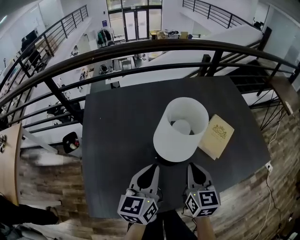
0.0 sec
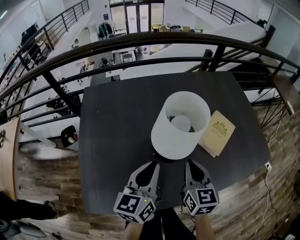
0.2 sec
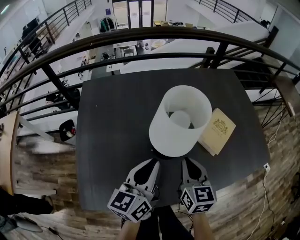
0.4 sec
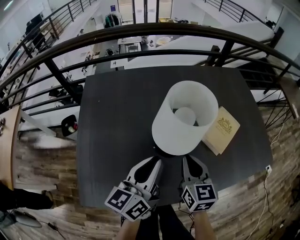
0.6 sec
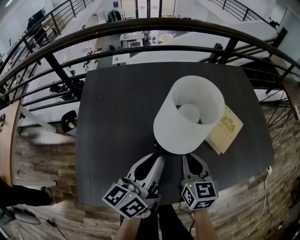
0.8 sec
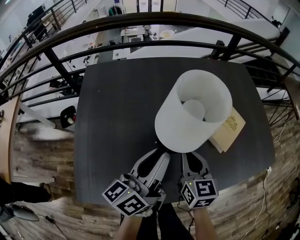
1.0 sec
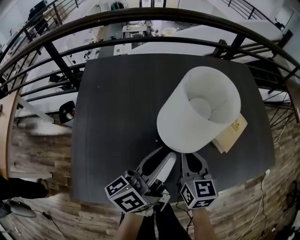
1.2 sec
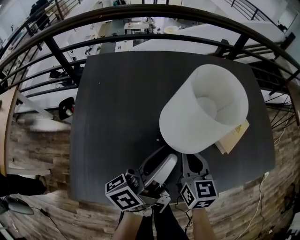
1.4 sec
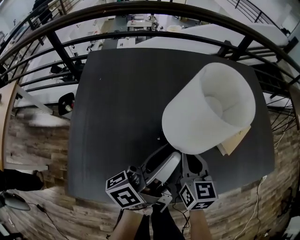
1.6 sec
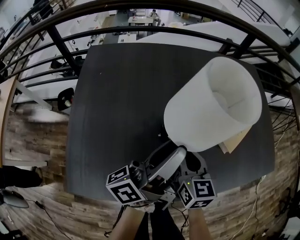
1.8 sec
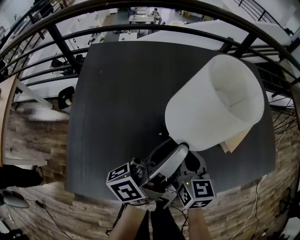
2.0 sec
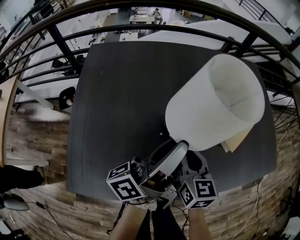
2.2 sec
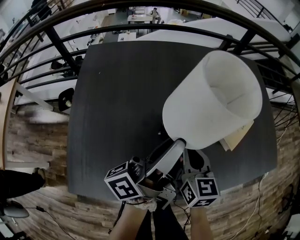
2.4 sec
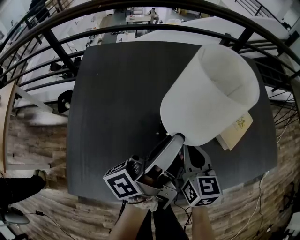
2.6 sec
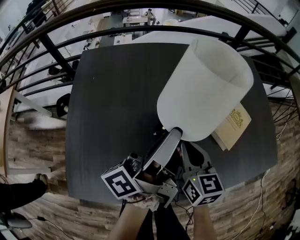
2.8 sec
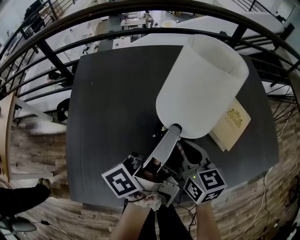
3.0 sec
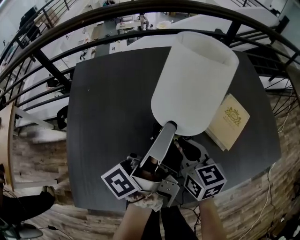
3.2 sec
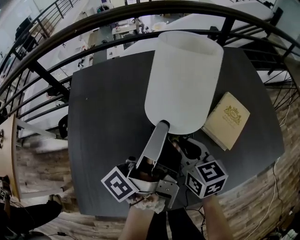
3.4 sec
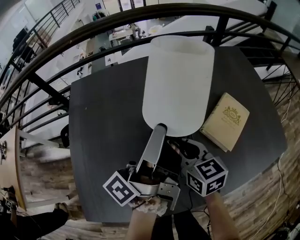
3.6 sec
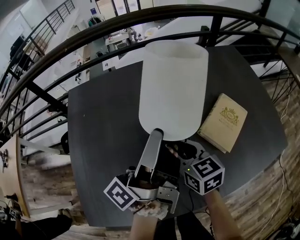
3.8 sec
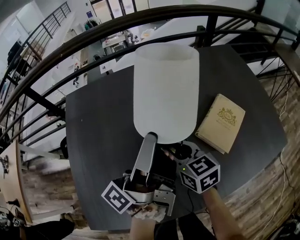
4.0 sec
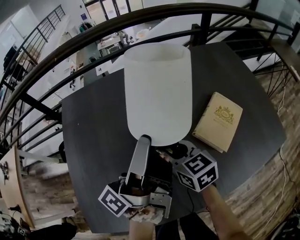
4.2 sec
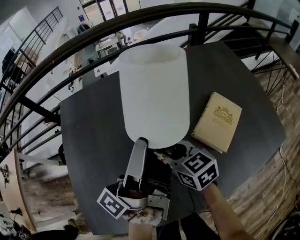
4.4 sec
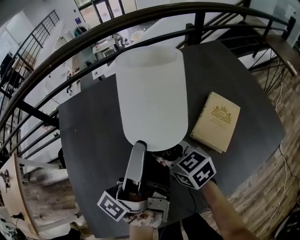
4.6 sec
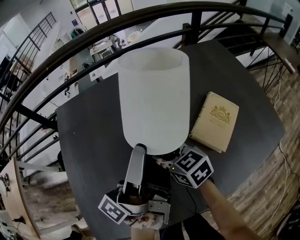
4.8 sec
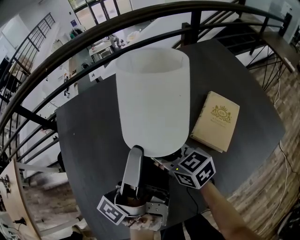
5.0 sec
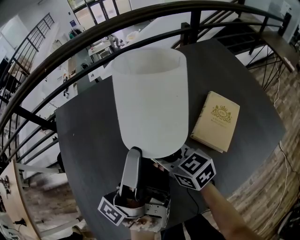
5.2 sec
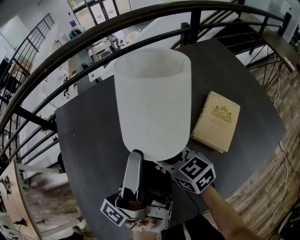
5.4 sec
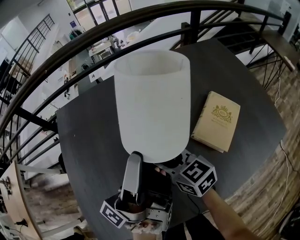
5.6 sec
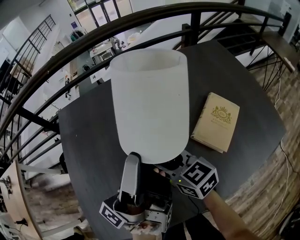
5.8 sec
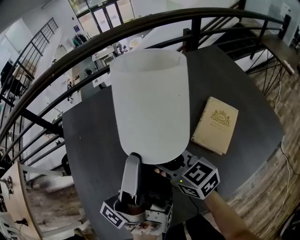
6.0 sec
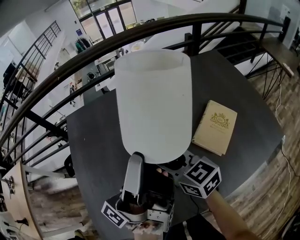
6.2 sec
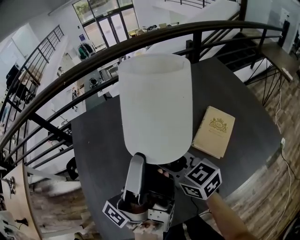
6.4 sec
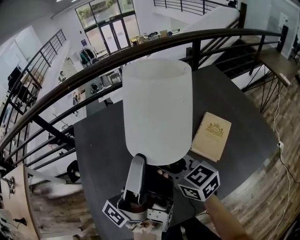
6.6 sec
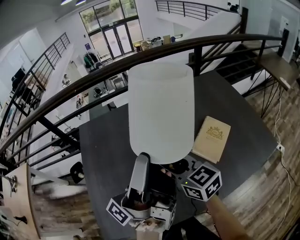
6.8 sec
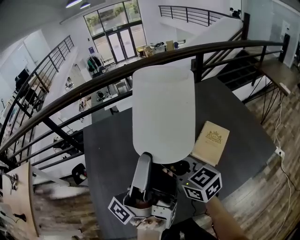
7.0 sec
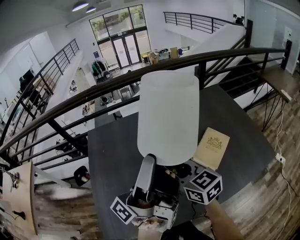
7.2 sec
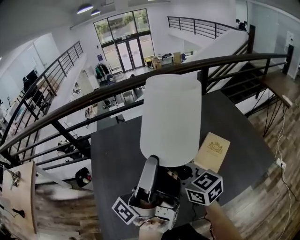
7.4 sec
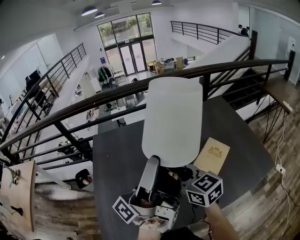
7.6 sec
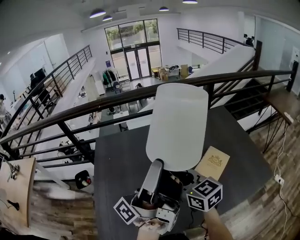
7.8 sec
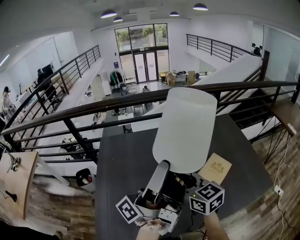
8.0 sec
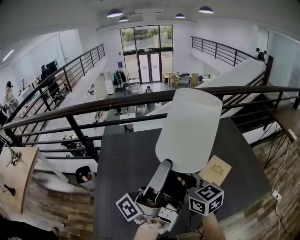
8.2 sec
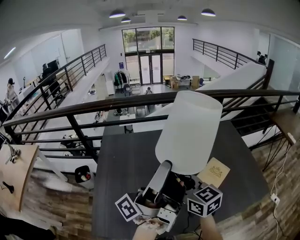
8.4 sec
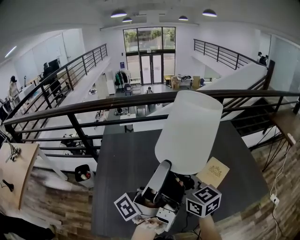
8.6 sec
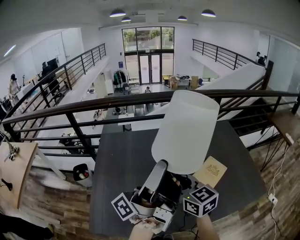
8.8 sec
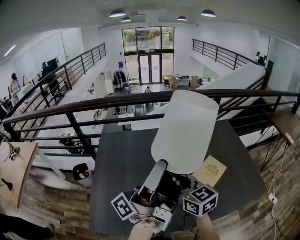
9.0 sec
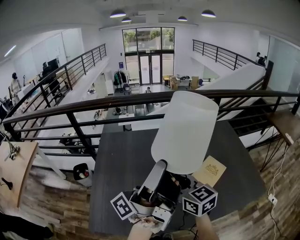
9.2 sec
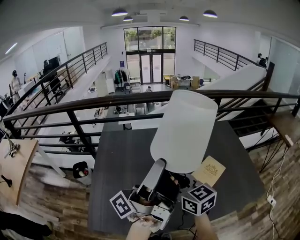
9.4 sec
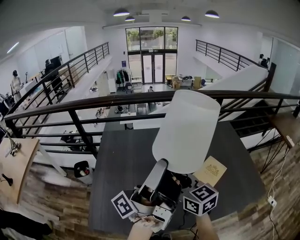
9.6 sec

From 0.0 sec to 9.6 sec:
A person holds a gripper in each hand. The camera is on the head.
From 0.0 sec to 1.6 sec: The left gripper rolls counterclockwise, seen from behind, by some 50 degrees, and opens; the right gripper moves downward, roughly 10 cm.
From 1.6 sec to 3.2 sec: The left gripper travels forward by roughly 5 cm.
From 3.2 sec to 4.8 sec: The right gripper moves forward, approximately 5 cm, and opens its fingers.
From 4.8 sec to 6.4 sec: The grippers both shift upward by approximately 10 cm.
From 6.4 sec to 8.0 sec: The left gripper moves upward and backward, approximately 15 cm. The right gripper goes roughly 15 cm upward.
From 8.0 sec to 9.6 sec: The grippers stay close to where they were, moving slightly.

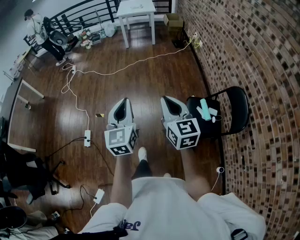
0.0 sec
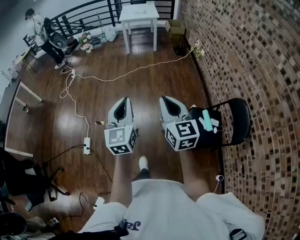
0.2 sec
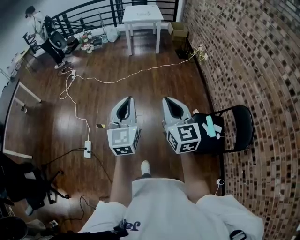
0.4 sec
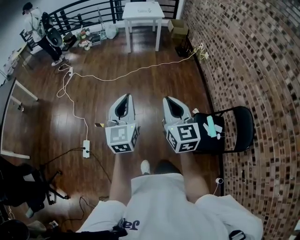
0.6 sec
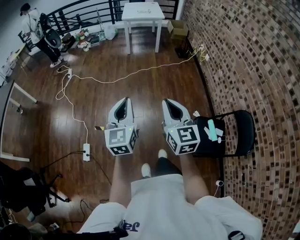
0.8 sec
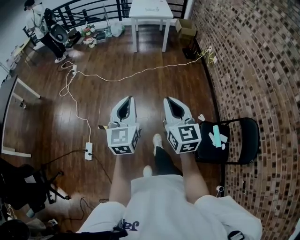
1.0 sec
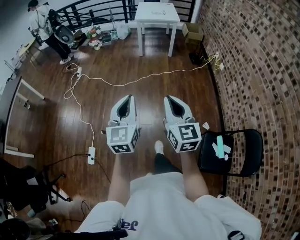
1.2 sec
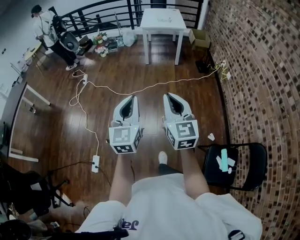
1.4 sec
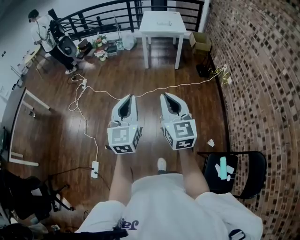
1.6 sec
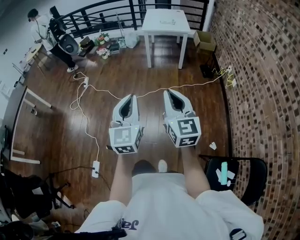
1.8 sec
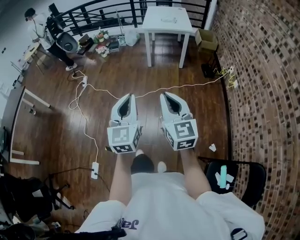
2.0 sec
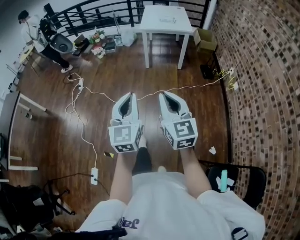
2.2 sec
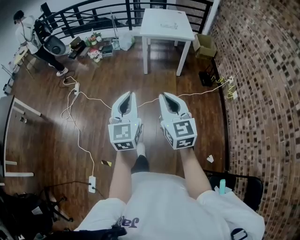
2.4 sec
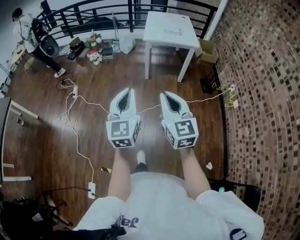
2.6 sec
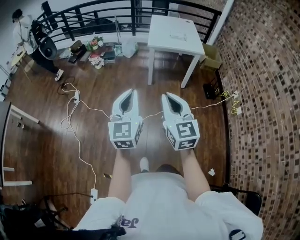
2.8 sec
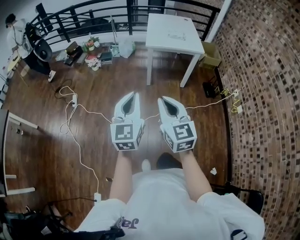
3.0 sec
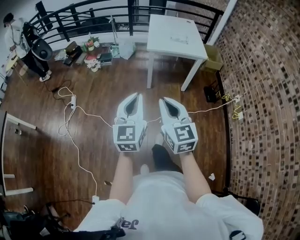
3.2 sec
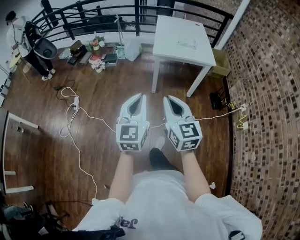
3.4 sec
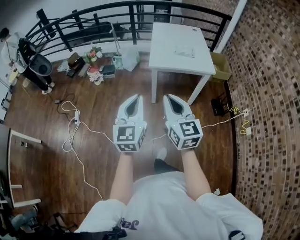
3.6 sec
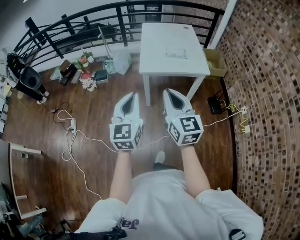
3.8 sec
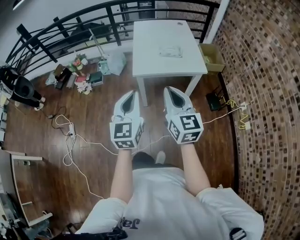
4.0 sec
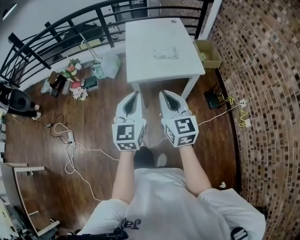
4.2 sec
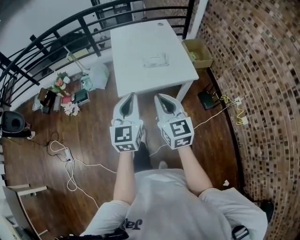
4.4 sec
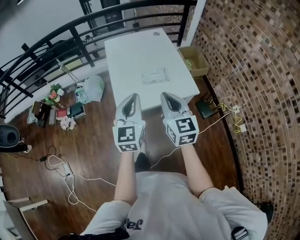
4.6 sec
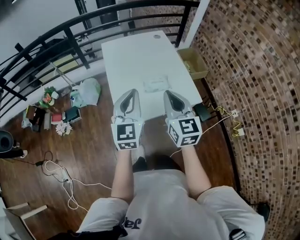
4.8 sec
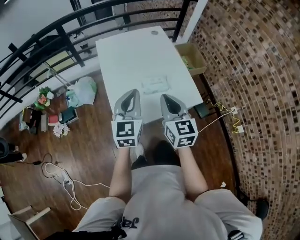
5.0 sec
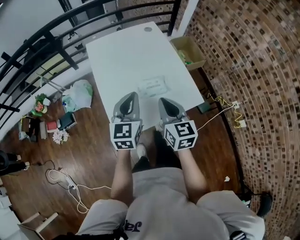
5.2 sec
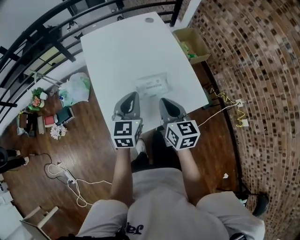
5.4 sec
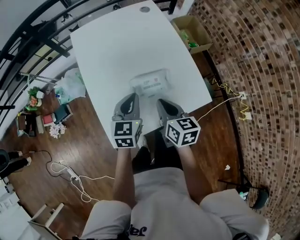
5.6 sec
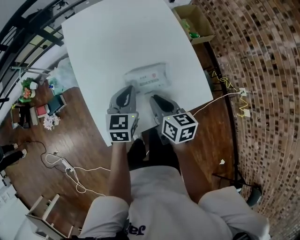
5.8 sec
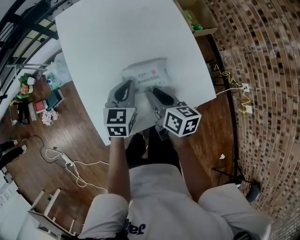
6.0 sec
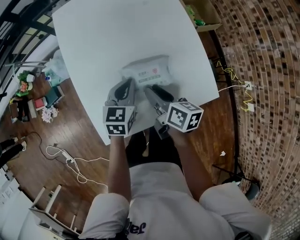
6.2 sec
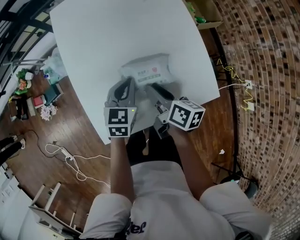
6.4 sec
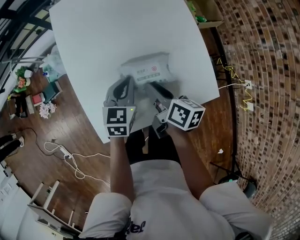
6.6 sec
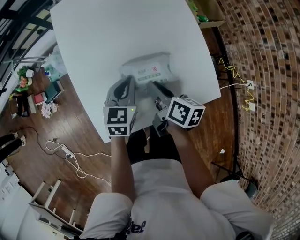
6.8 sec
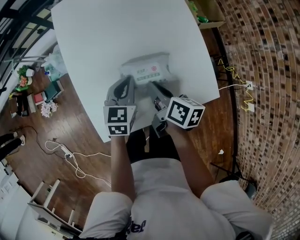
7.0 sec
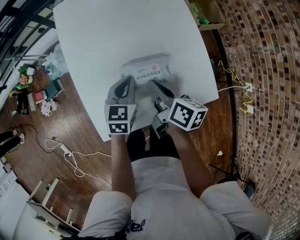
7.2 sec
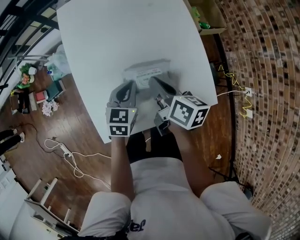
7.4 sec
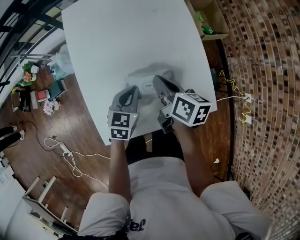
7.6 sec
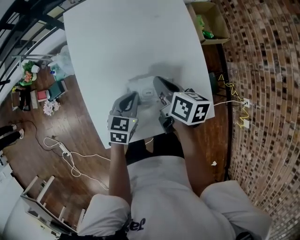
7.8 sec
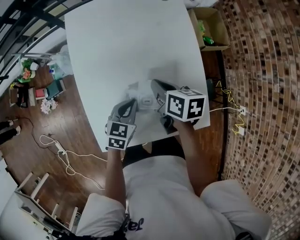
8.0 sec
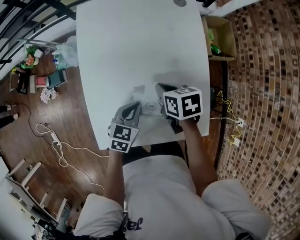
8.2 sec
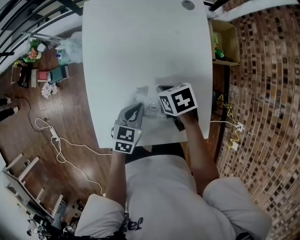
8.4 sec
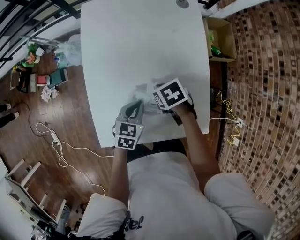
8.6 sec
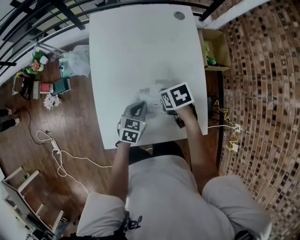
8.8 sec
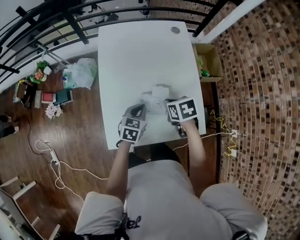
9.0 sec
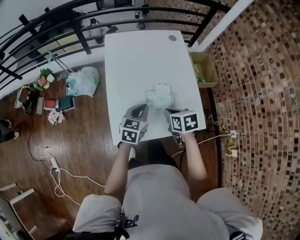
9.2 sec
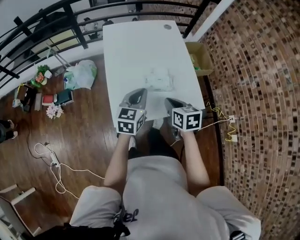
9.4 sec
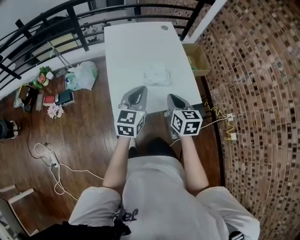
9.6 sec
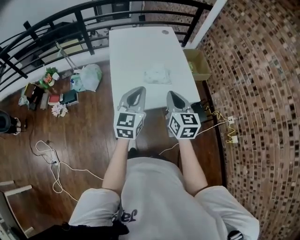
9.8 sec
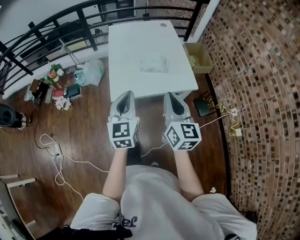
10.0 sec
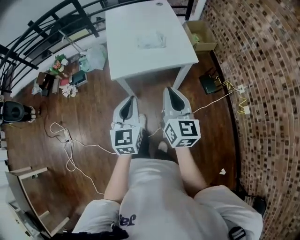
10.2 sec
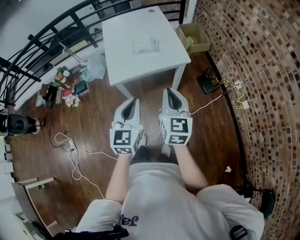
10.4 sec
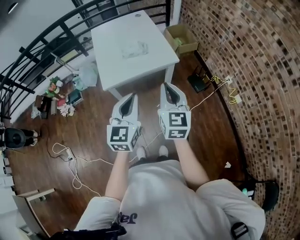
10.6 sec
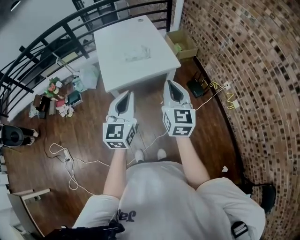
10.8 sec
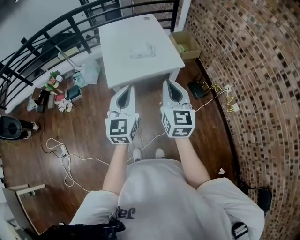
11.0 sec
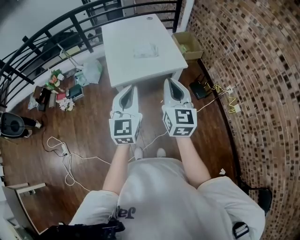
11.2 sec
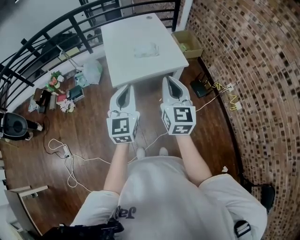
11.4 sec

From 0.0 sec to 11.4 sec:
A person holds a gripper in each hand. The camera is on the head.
From 0.0 sec to 1.4 sec: The two grippers travel together, forward, roughly 40 cm.
From 1.4 sec to 2.8 sec: The pair of grippers is taken forward, approximately 50 cm.
From 2.8 sec to 4.2 sec: The pair of grippers is taken forward, approximately 50 cm.
From 4.2 sec to 5.6 sec: The pair of grippers is taken forward, approximately 50 cm. The two grippers go about 25 cm downward. The right gripper rotates approximately 40 degrees. Meanwhile the left gripper turns by approximately 30 degrees.
From 5.6 sec to 7.2 sec: The right gripper moves forward and downward, some 10 cm, swivels roughly 30 degrees, and opens, then closes again, while the left gripper heads downward, covering about 10 cm.
From 7.2 sec to 8.6 sec: The right gripper changes place by approximately 10 cm, and tips its fingers downward by about 40 degrees.
From 8.6 sec to 10.0 sec: The right gripper changes place by approximately 50 cm, and points its fingers approximately 70 degrees further upward; the left gripper moves approximately 40 cm, and tips its fingers upward by roughly 40 degrees.
From 10.0 sec to 11.4 sec: Both grippers travel together backward and upward, about 15 cm.

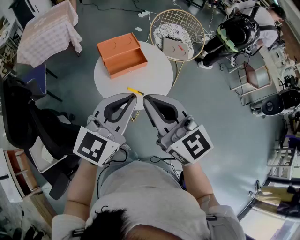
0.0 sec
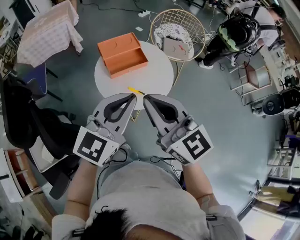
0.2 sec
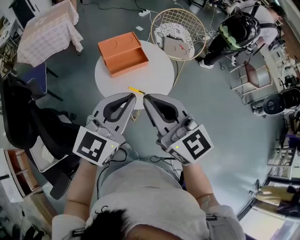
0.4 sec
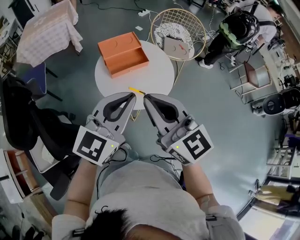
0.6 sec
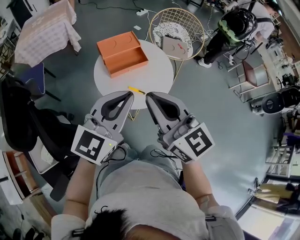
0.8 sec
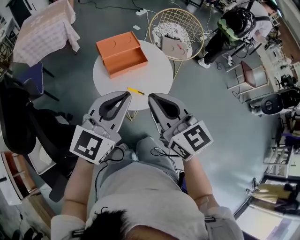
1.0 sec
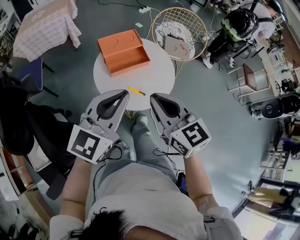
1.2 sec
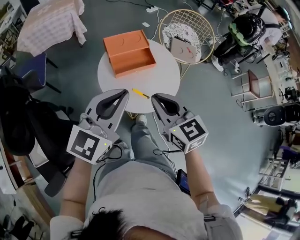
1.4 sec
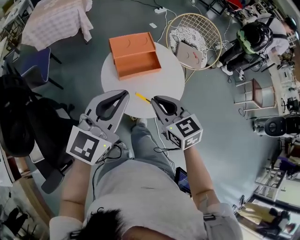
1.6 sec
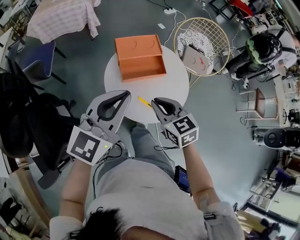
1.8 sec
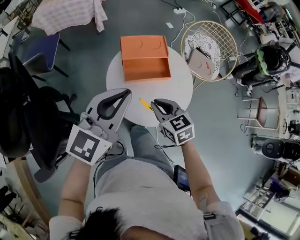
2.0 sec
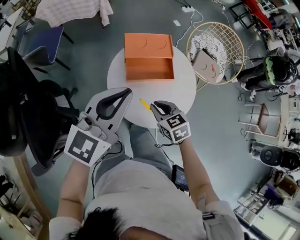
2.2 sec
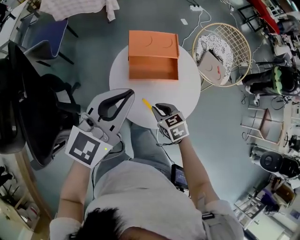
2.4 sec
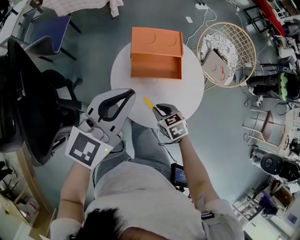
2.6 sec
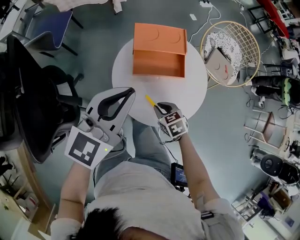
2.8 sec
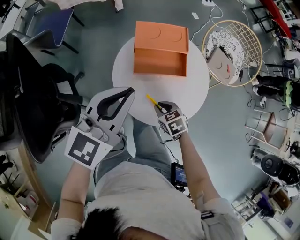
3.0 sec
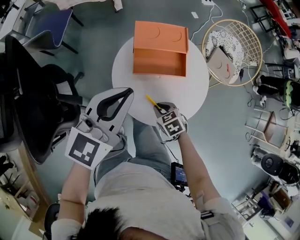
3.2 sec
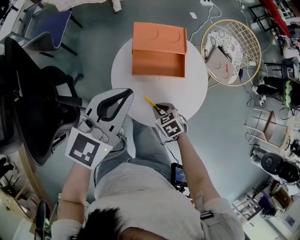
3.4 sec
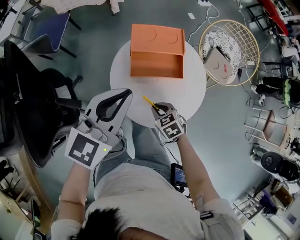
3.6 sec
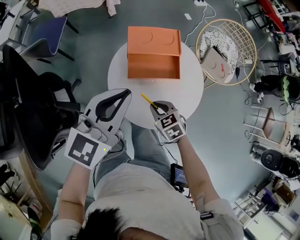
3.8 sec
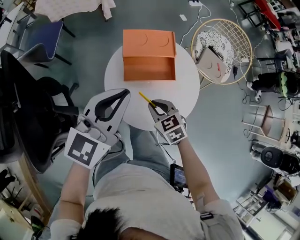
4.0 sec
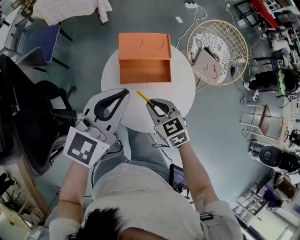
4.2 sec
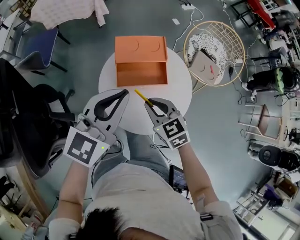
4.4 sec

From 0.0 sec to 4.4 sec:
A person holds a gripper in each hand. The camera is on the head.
From 0.0 sec to 1.4 sec: The left gripper moves forward and to the left, roughly 10 cm; the right gripper is displaced downward and forward by some 15 cm.
From 1.4 sec to 3.0 sec: The left gripper ends up some 10 cm from where it was, and turns by roughly 20 degrees. Meanwhile the right gripper moves downward, approximately 25 cm, and points its fingers approximately 40 degrees further downward.
From 3.0 sec to 4.4 sec: The right gripper is displaced upward by roughly 15 cm, and swivels some 20 degrees.
